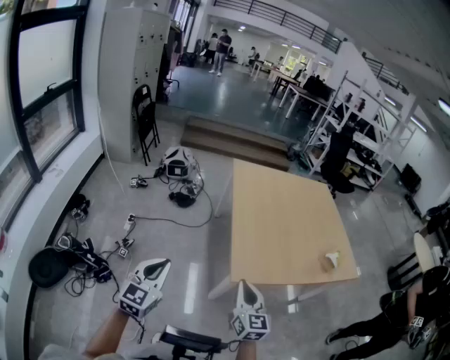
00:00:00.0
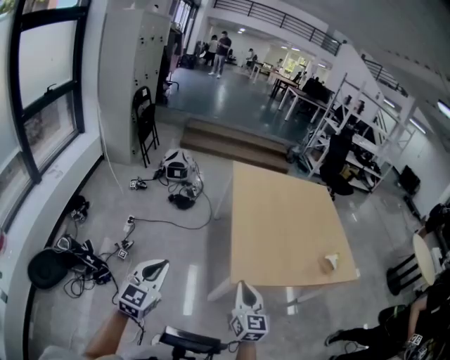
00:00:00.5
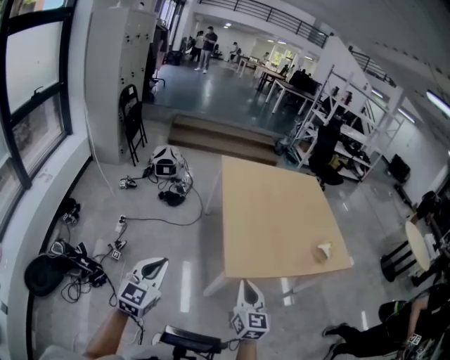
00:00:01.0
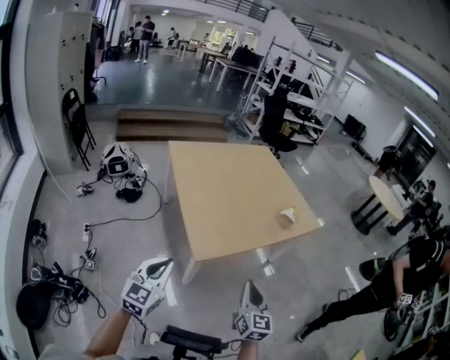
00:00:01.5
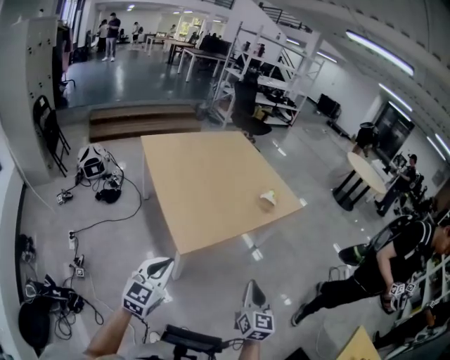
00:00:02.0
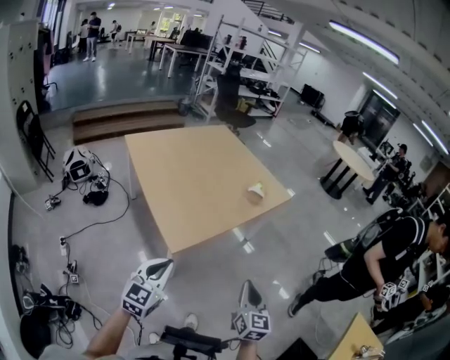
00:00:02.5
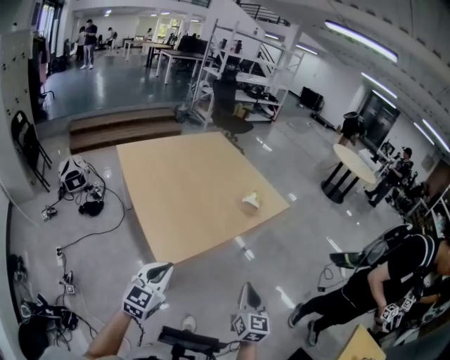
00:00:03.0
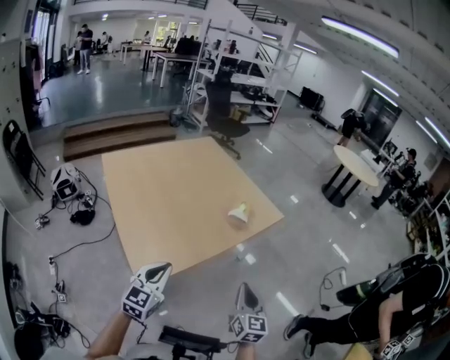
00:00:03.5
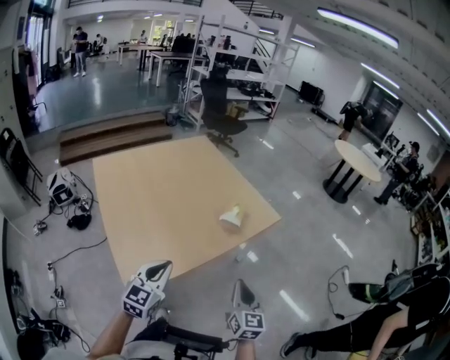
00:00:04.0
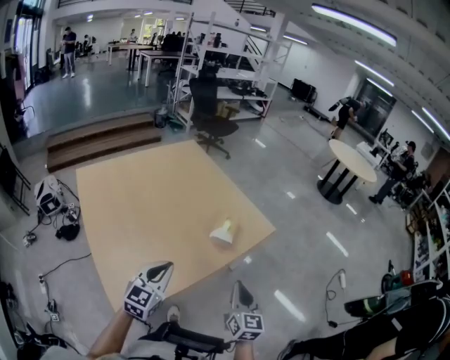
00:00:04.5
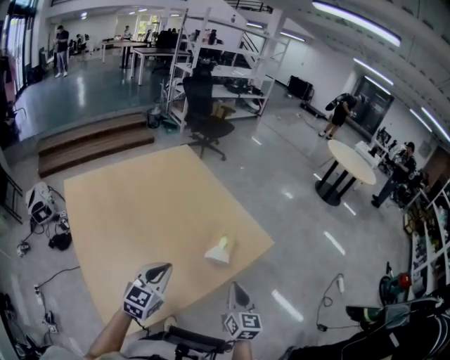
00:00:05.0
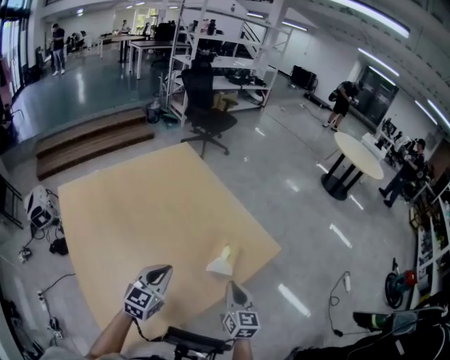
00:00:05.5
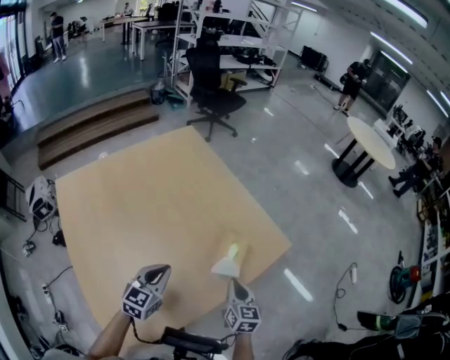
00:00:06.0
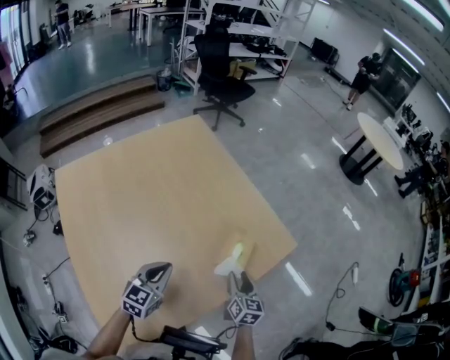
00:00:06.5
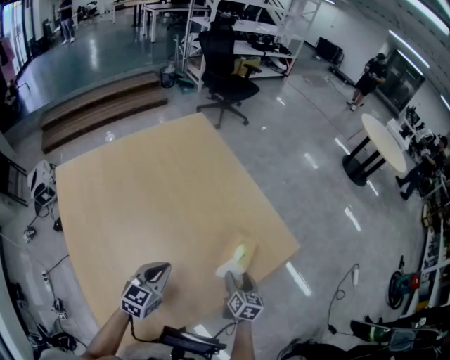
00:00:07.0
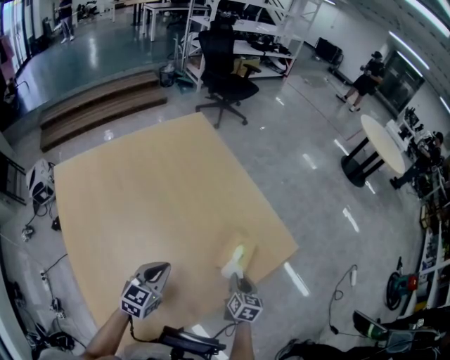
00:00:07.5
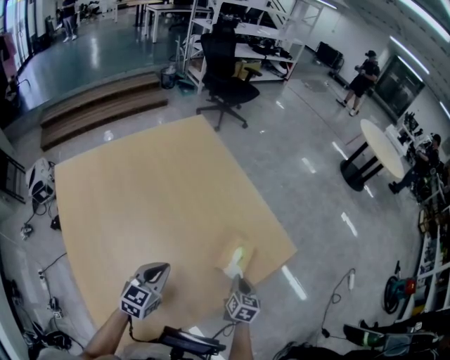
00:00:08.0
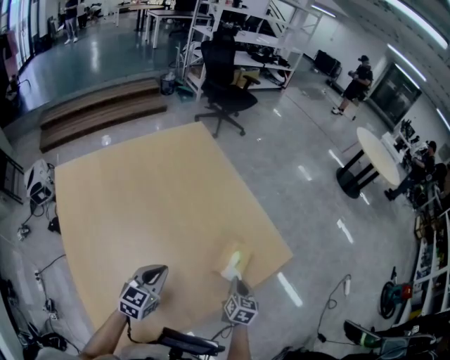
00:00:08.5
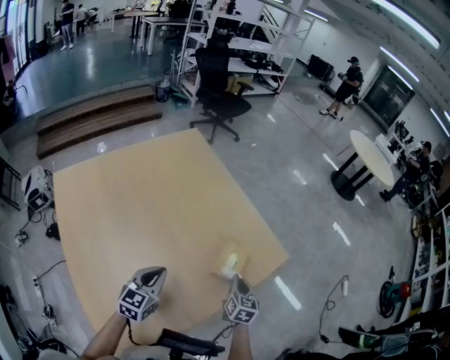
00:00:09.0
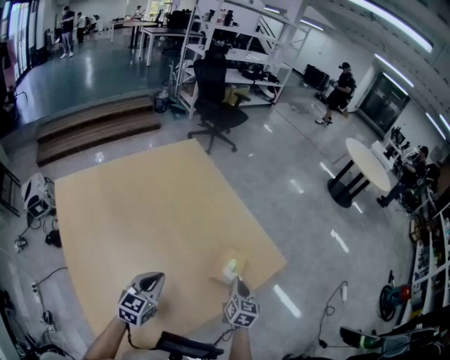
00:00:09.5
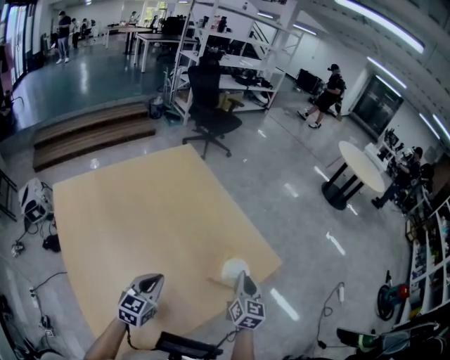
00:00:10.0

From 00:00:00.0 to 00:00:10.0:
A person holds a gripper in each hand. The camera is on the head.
From 00:00:00.0 to 00:00:02.0: The right gripper moves about 25 cm, and rotates about 40 degrees. The left gripper changes place by roughly 20 cm, and rotates approximately 30 degrees.
From 00:00:02.0 to 00:00:04.0: The grippers both shift forward and to the right by roughly 25 cm.
From 00:00:04.0 to 00:00:06.0: The two grippers go about 25 cm forward.
From 00:00:06.0 to 00:00:08.0: The right gripper shifts approximately 10 cm downward, and opens, then closes again.
From 00:00:08.0 to 00:00:10.0: The right gripper travels upward by some 15 cm, and changes its angle by approximately 20 degrees.

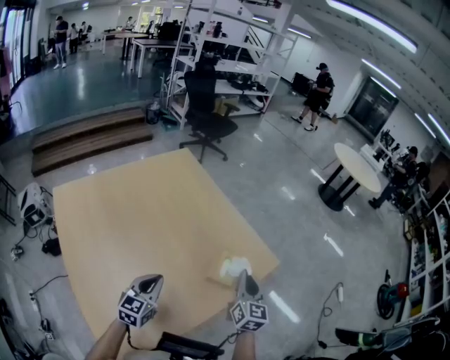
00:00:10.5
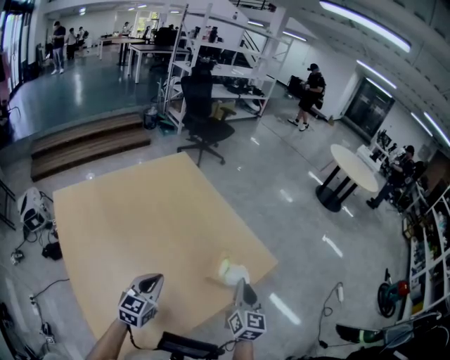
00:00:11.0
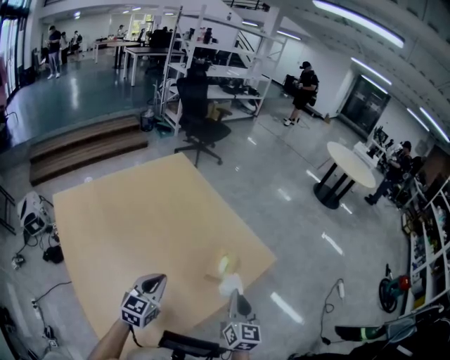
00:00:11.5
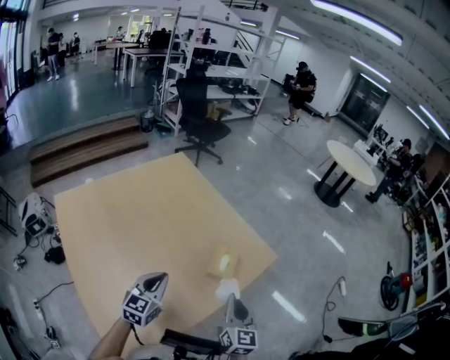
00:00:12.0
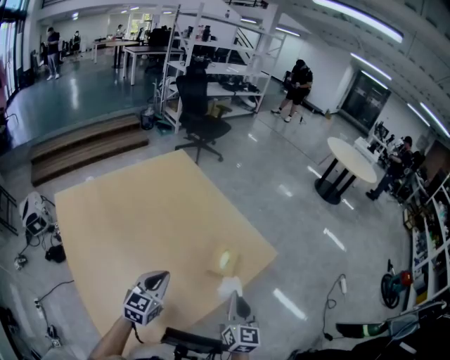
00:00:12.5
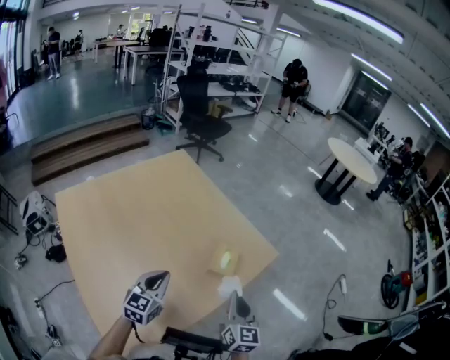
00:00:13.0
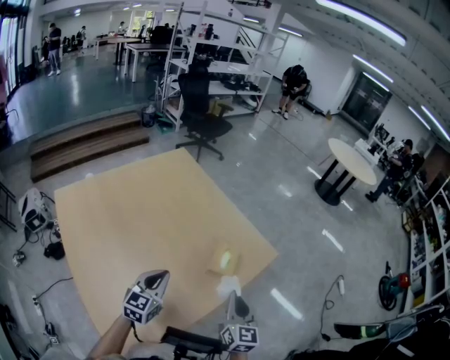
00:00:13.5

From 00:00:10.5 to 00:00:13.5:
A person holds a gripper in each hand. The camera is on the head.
From 00:00:10.5 to 00:00:12.0: The right gripper is displaced backward by about 10 cm.
From 00:00:12.0 to 00:00:13.5: The two grippers keep their place.

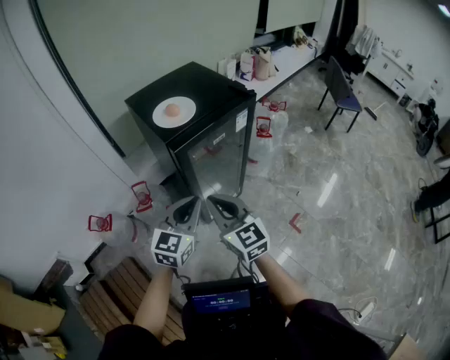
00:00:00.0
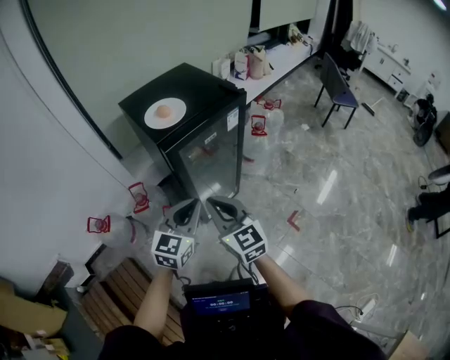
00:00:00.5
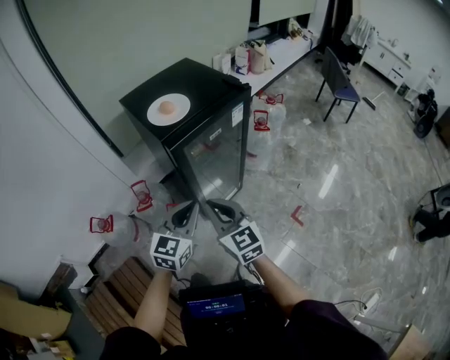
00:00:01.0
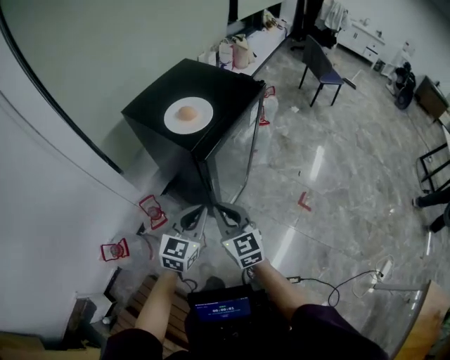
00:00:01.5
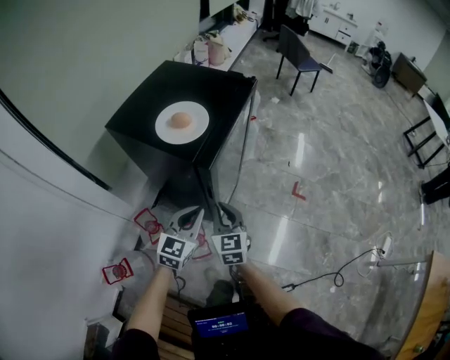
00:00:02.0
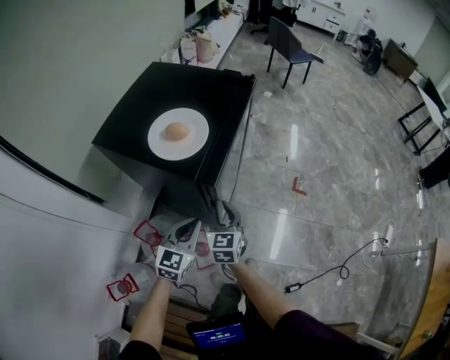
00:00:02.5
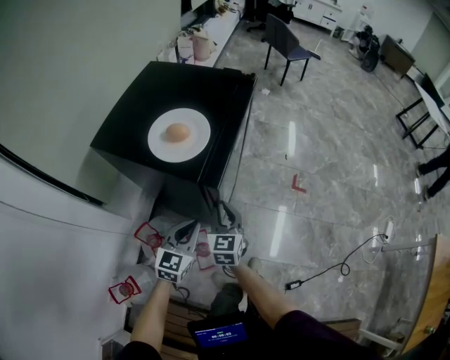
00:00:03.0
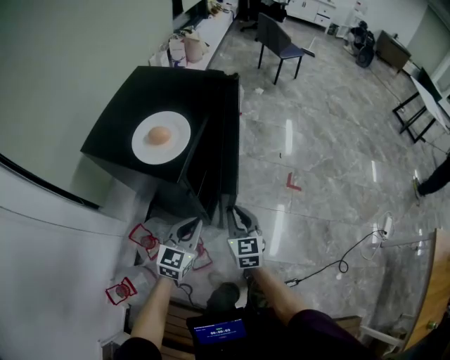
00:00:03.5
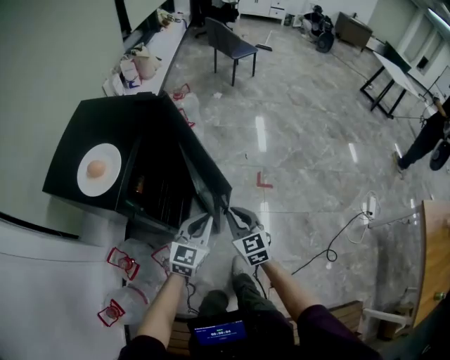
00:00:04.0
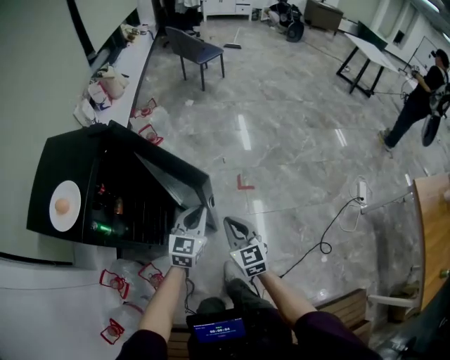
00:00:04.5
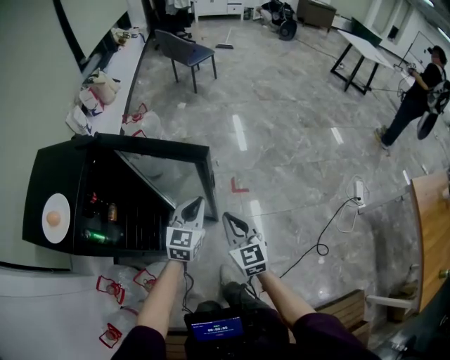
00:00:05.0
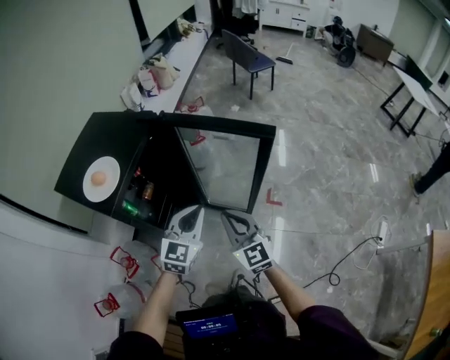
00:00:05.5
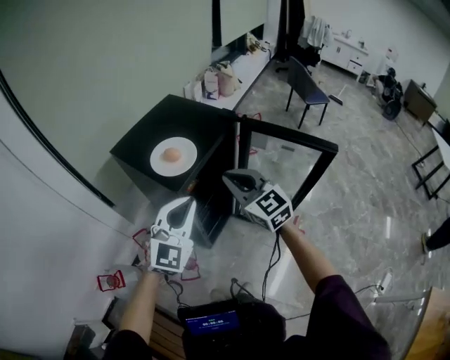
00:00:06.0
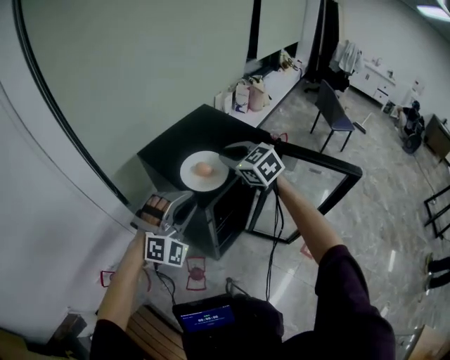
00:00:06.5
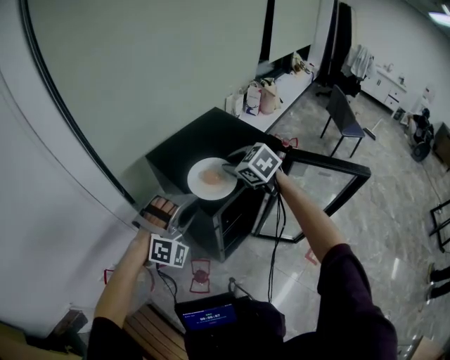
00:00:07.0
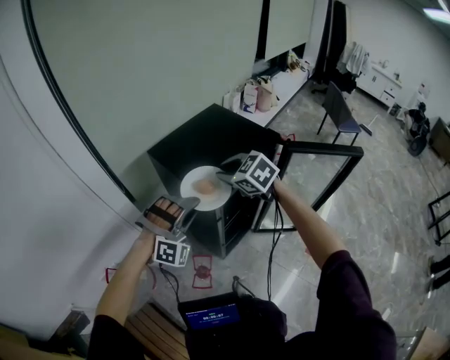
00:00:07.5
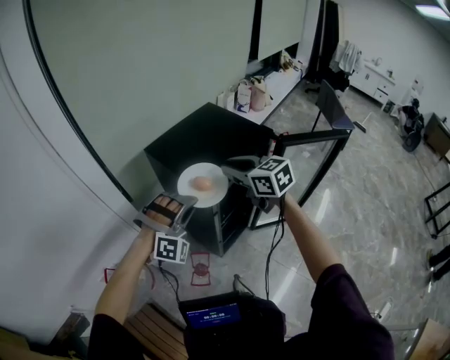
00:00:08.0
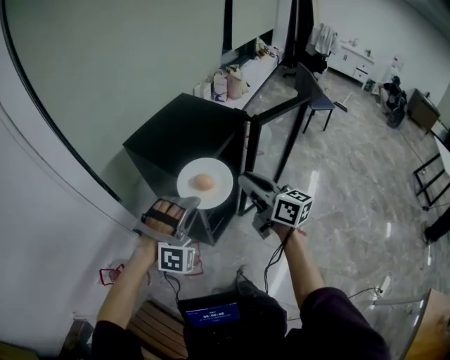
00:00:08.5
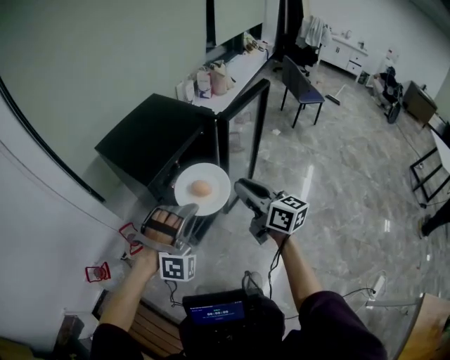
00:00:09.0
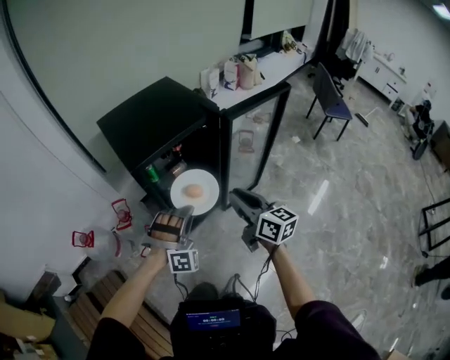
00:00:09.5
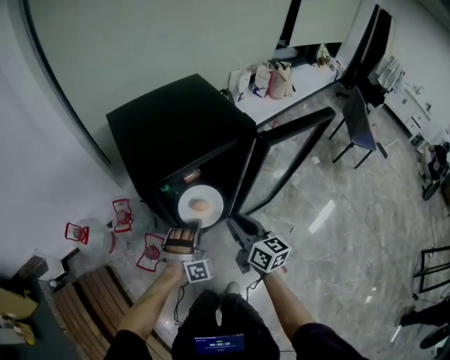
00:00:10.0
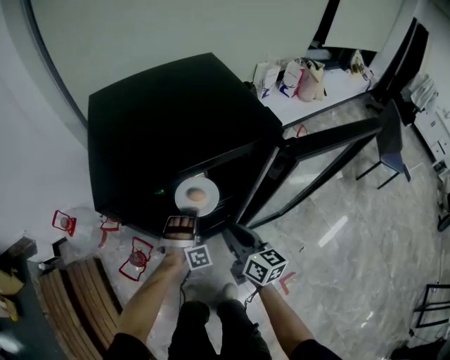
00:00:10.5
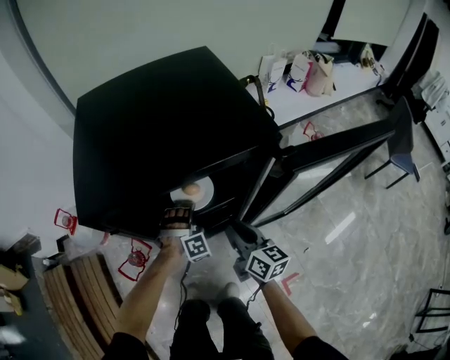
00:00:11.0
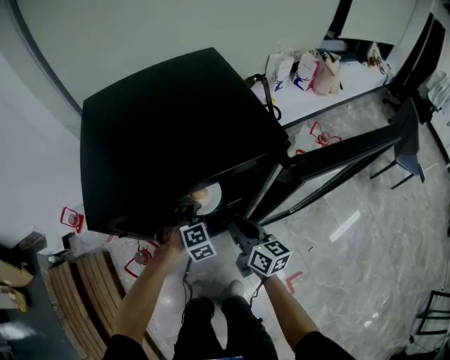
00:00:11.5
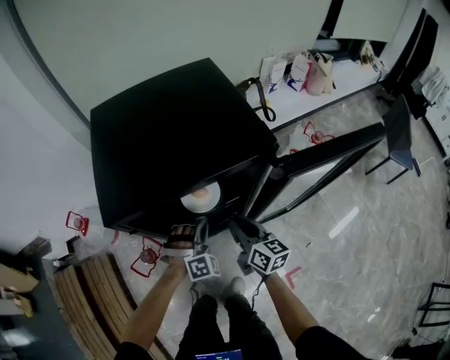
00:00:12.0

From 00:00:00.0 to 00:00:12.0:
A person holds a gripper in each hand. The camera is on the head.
From 00:00:00.0 to 00:00:02.0: The left gripper changes place by approximately 20 cm, and swivels about 30 degrees, while the right gripper shifts some 15 cm downward, and changes its angle by approximately 50 degrees.
From 00:00:02.0 to 00:00:04.0: The left gripper heads to the right and forward, covering approximately 25 cm. Meanwhile the right gripper shifts roughly 25 cm to the right.
From 00:00:04.0 to 00:00:06.0: Both grippers move upward, approximately 25 cm. The left gripper swivels about 40 degrees; the right gripper rotates roughly 40 degrees.
From 00:00:06.0 to 00:00:08.0: The right gripper travels forward and to the left by roughly 15 cm, and changes its angle by approximately 20 degrees. The left gripper moves to the left and forward, roughly 10 cm, rotates around the line of its fingers by approximately 60 degrees, clockwise from behind, and opens and closes again.
From 00:00:08.0 to 00:00:10.0: The left gripper is displaced downward by some 20 cm, and turns by roughly 40 degrees, while the right gripper shifts by some 30 cm, and changes its angle by roughly 20 degrees.
From 00:00:10.0 to 00:00:12.0: The left gripper shifts approximately 15 cm forward, downward and to the right, changes its angle by approximately 20 degrees, and opens, then closes once more. The right gripper is displaced downward, forward and to the right by roughly 20 cm.

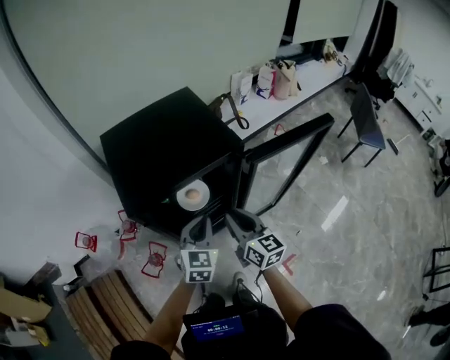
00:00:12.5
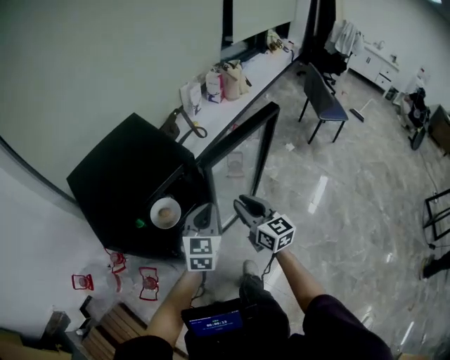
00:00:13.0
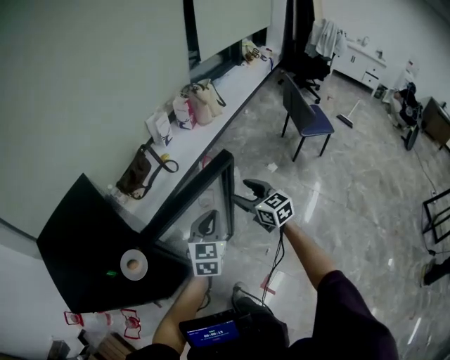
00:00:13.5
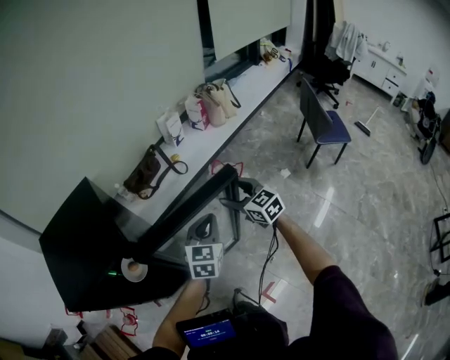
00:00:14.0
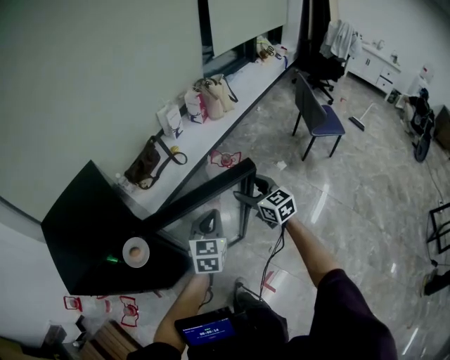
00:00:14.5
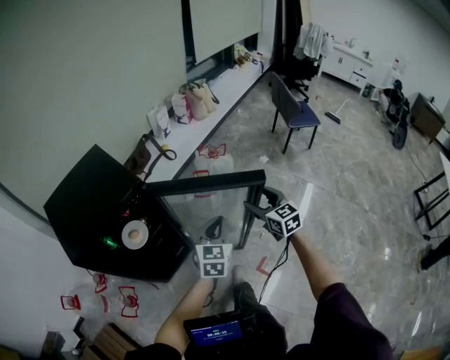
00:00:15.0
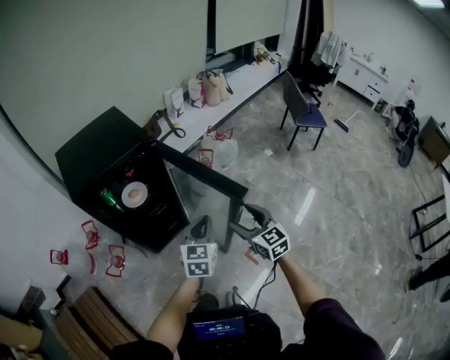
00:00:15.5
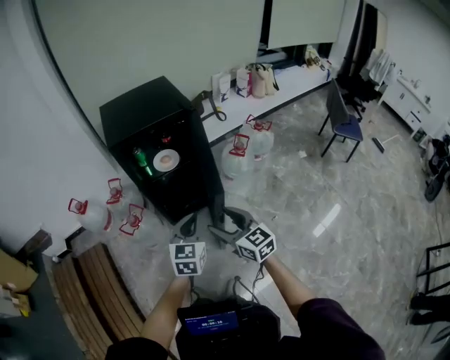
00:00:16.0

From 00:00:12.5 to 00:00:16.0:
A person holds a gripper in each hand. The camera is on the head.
From 00:00:12.5 to 00:00:14.5: Both grippers are carried to the right, roughly 40 cm. The right gripper rotates approximately 20 degrees, and opens.
From 00:00:14.5 to 00:00:16.0: Both grippers are carried some 50 cm. The right gripper changes its angle by roughly 20 degrees.
